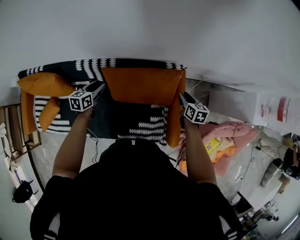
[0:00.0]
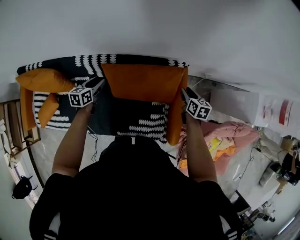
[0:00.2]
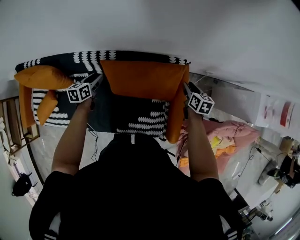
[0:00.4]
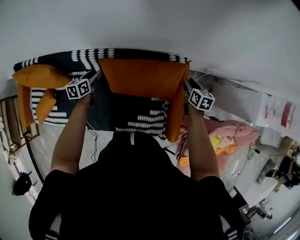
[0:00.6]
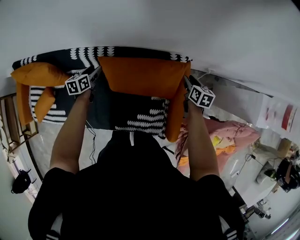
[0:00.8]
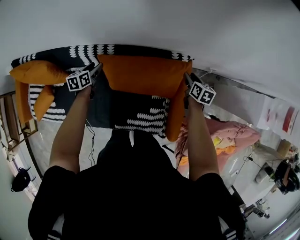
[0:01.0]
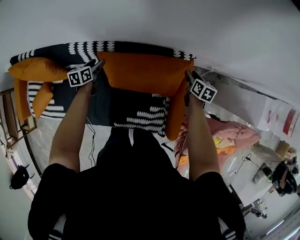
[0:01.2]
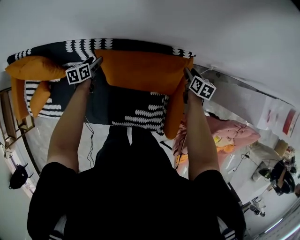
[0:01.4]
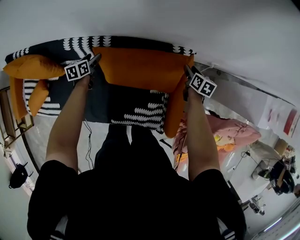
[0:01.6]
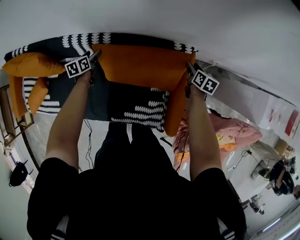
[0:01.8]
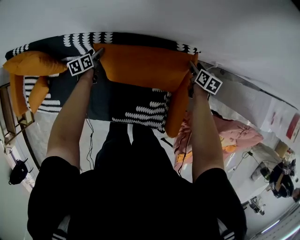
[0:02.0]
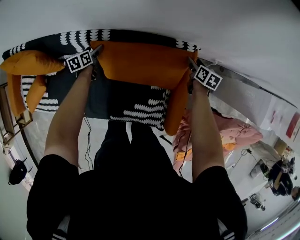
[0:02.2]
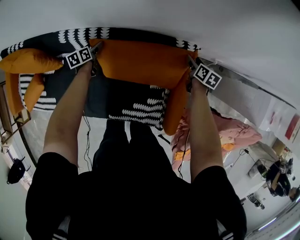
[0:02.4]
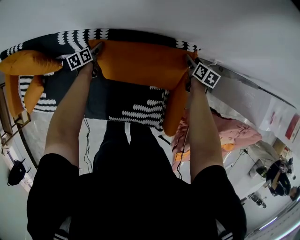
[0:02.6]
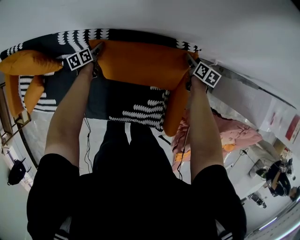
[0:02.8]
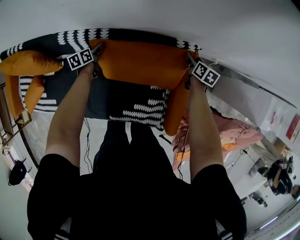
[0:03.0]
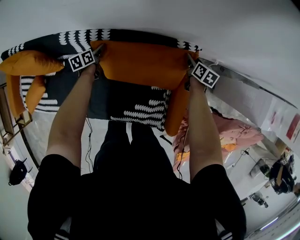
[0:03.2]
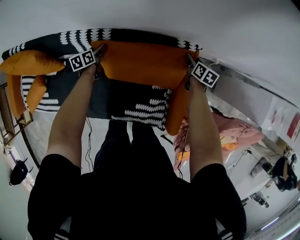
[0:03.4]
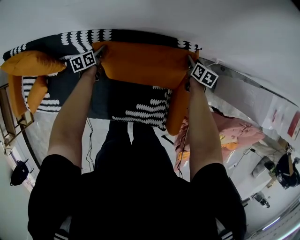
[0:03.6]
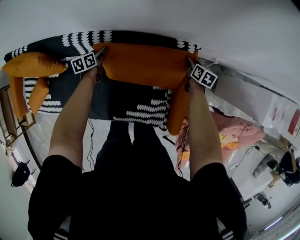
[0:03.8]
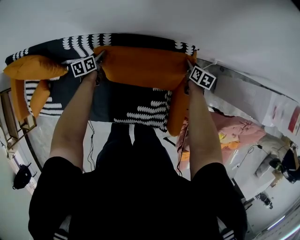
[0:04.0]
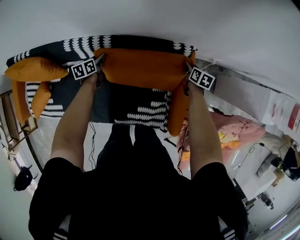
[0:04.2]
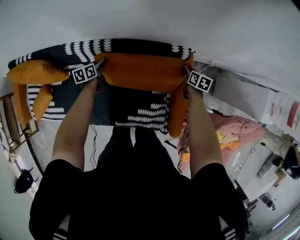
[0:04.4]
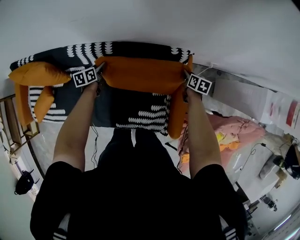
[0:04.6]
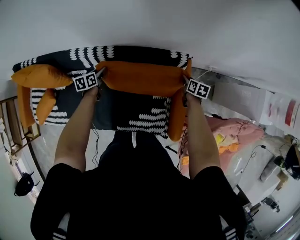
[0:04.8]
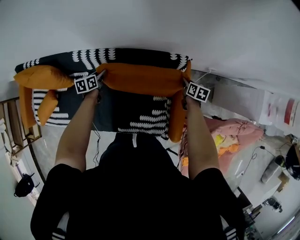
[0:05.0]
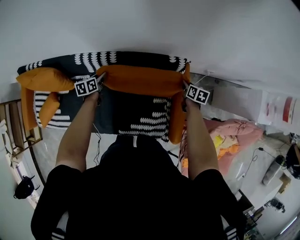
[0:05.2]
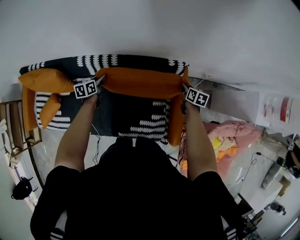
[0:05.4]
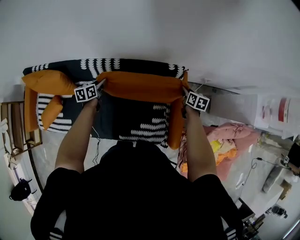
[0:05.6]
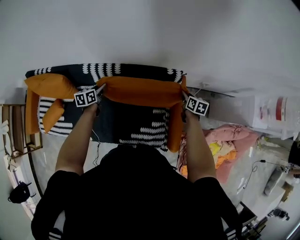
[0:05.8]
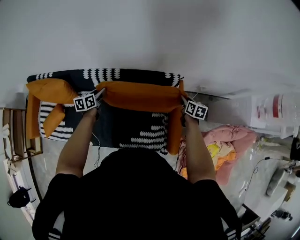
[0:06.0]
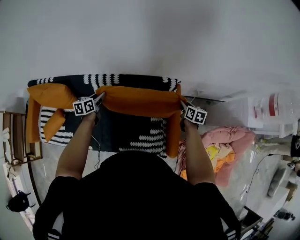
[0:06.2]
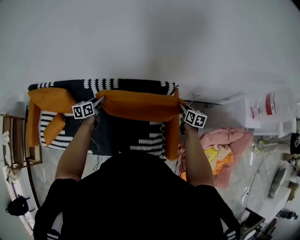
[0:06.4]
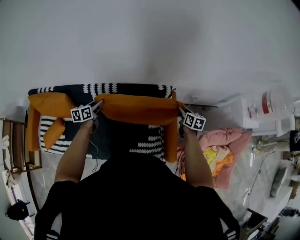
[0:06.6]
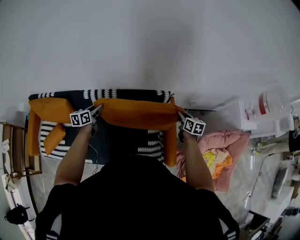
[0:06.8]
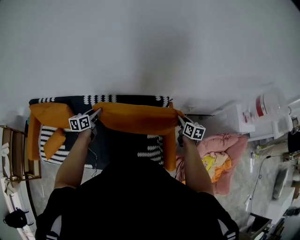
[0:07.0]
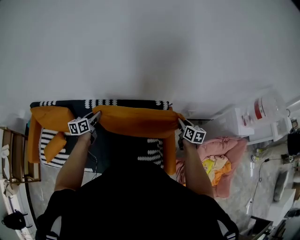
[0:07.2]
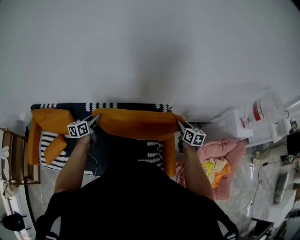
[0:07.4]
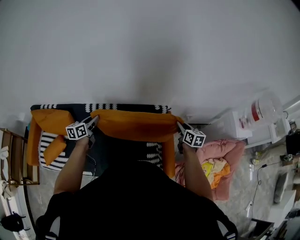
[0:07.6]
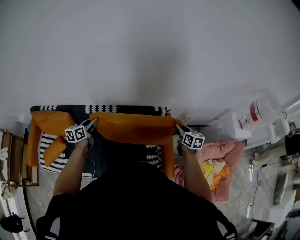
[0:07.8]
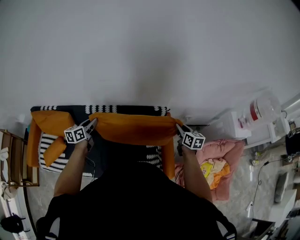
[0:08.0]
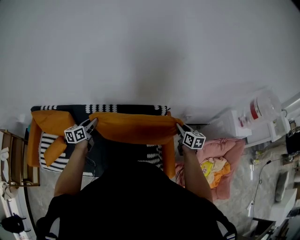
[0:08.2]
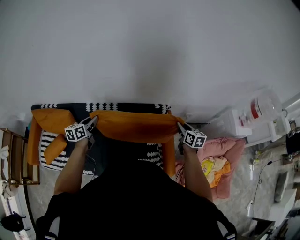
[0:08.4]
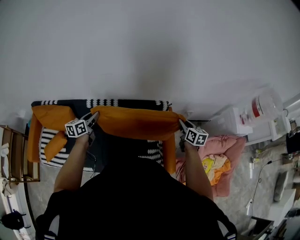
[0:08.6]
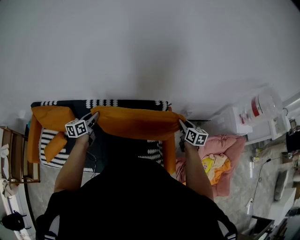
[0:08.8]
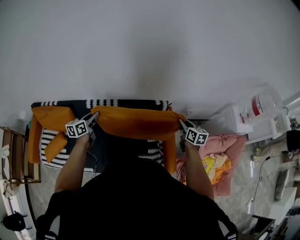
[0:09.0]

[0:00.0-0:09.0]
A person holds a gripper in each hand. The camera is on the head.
0:00.0 to 0:01.6: Both grippers move downward and forward, roughly 15 cm.
0:01.6 to 0:03.0: The right gripper shifts by roughly 5 cm; the left gripper goes approximately 5 cm downward.
0:03.0 to 0:04.4: The left gripper shifts some 5 cm upward, and closes up, while the right gripper shifts about 5 cm backward, and closes its fingers.
0:04.4 to 0:06.0: The two grippers go roughly 20 cm upward and backward.
0:06.0 to 0:07.6: The right gripper heads upward and backward, covering roughly 20 cm, while the left gripper is displaced upward by roughly 15 cm.
0:07.6 to 0:09.0: The grippers stay close to where they were, moving slightly.

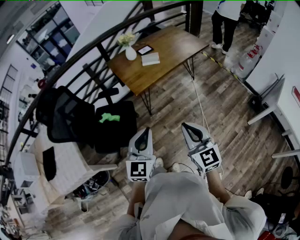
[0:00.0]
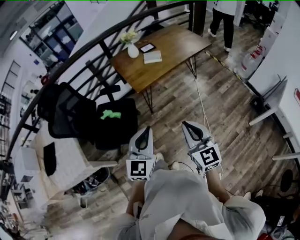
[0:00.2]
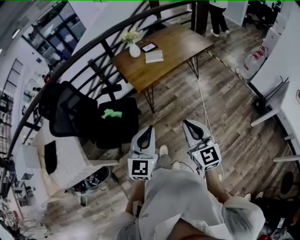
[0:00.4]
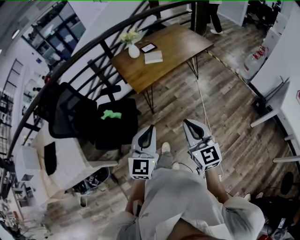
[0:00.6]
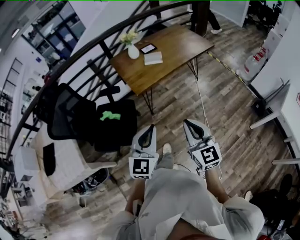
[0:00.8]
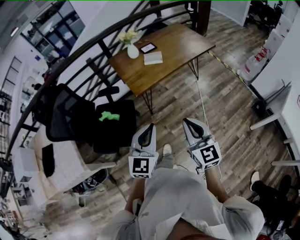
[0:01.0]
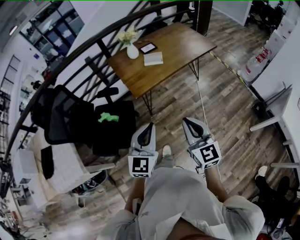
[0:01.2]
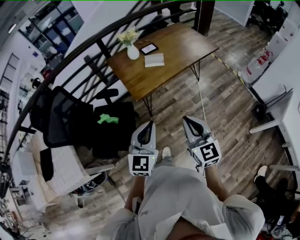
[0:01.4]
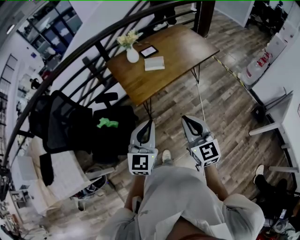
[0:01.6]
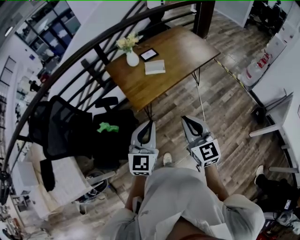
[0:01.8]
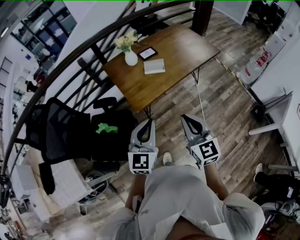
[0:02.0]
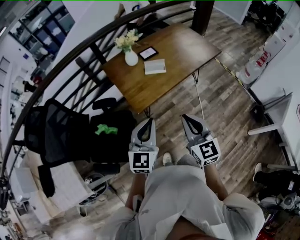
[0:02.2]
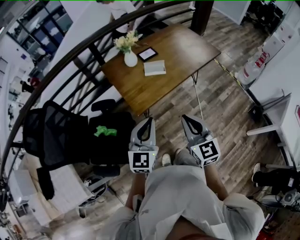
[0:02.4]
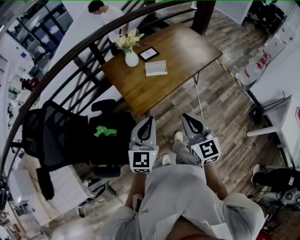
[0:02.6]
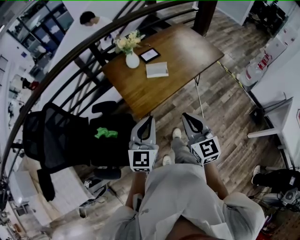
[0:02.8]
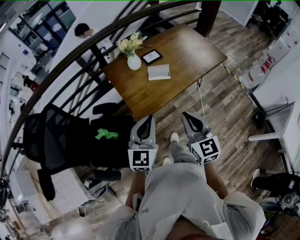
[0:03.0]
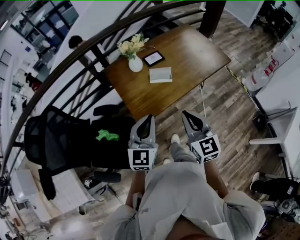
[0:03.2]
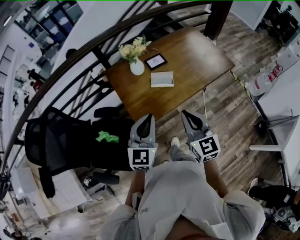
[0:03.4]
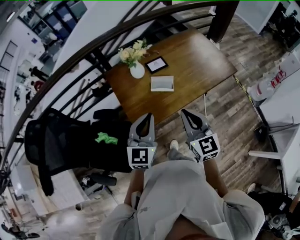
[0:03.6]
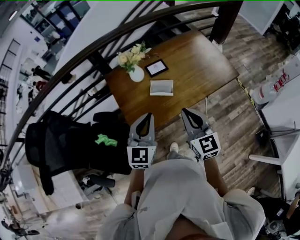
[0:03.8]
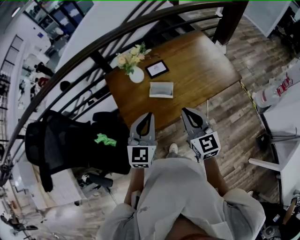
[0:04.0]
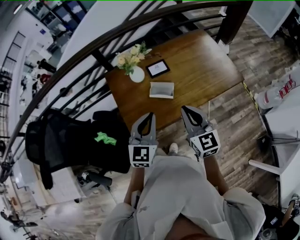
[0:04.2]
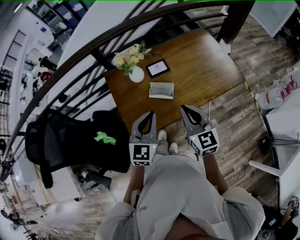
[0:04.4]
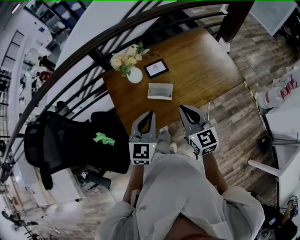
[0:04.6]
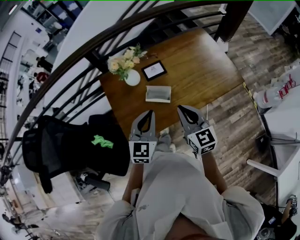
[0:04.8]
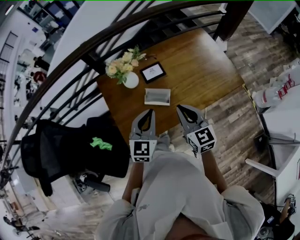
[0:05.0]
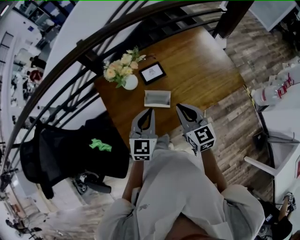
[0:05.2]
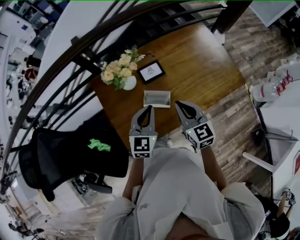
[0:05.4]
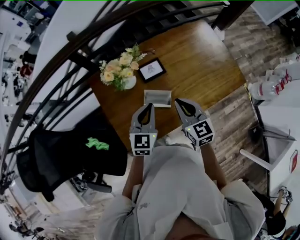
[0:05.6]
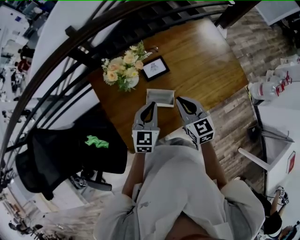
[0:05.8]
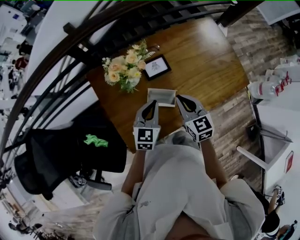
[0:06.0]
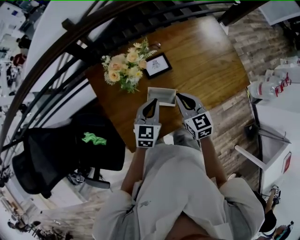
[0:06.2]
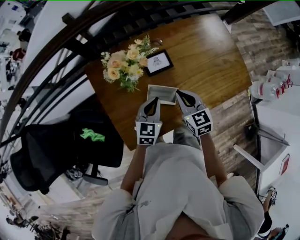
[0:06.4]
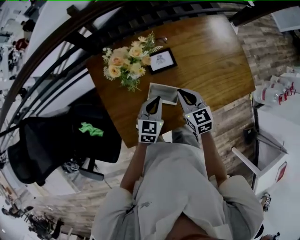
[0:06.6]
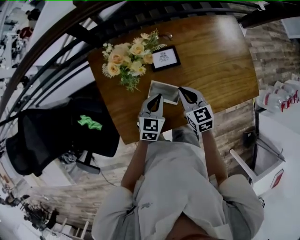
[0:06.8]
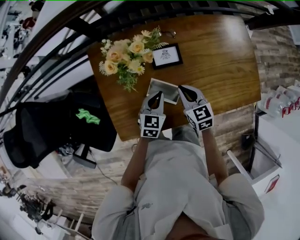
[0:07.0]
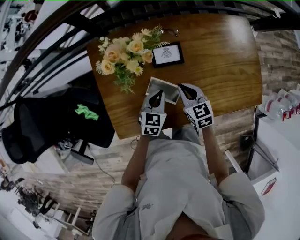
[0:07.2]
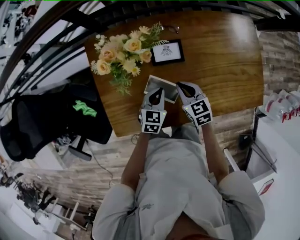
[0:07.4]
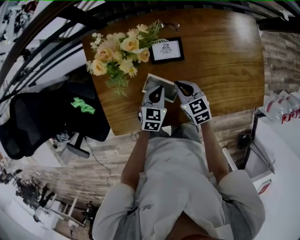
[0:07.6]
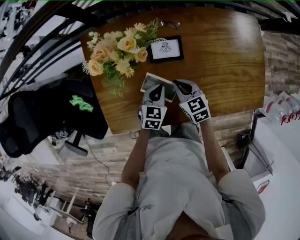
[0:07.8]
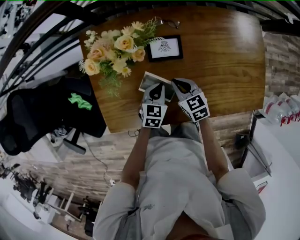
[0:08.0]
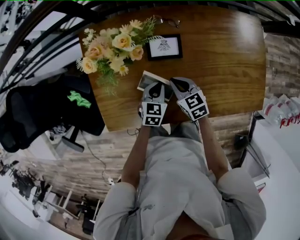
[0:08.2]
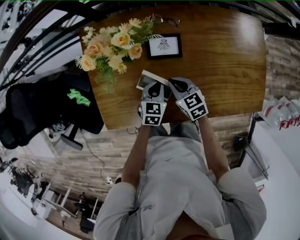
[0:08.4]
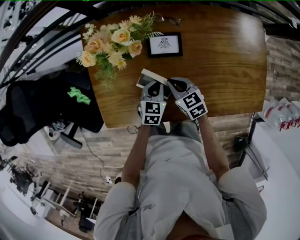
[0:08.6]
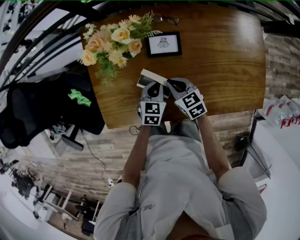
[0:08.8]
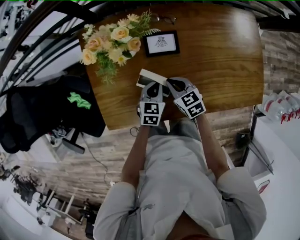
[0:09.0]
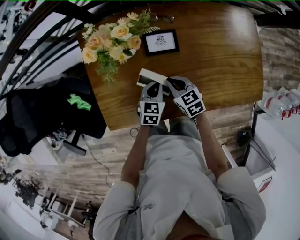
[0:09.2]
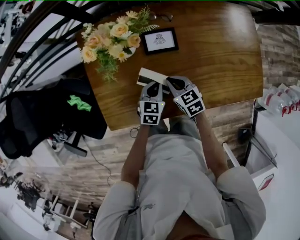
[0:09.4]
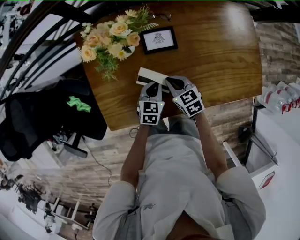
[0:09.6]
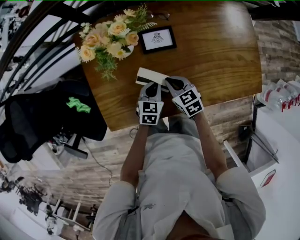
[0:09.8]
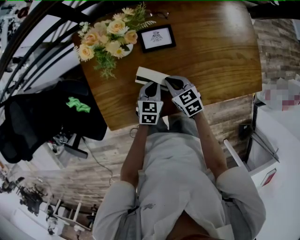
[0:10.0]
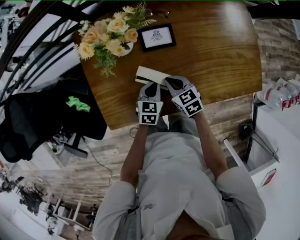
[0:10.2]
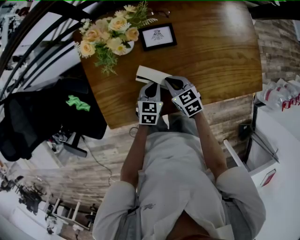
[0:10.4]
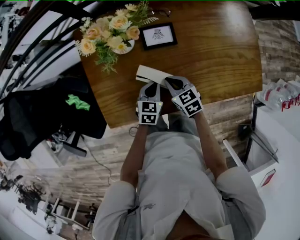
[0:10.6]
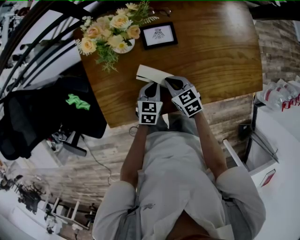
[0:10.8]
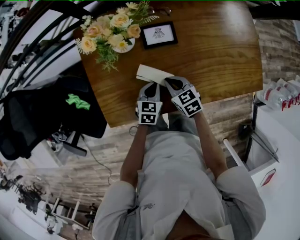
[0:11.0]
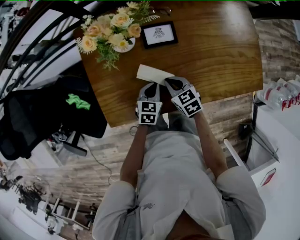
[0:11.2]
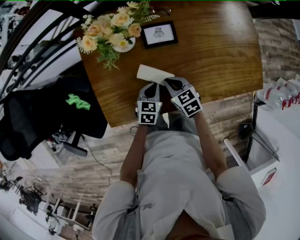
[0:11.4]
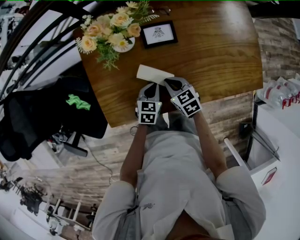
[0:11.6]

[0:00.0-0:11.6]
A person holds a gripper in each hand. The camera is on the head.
0:00.0 to 0:01.4: Both grippers travel together forward, roughly 15 cm.
0:01.4 to 0:02.8: The grippers both shift forward by about 20 cm.
0:02.8 to 0:04.4: The right gripper moves forward, roughly 25 cm; the left gripper travels forward and to the right by approximately 25 cm.
0:04.4 to 0:05.8: The grippers both shift forward and downward by about 20 cm.
0:05.8 to 0:07.2: The right gripper moves downward and forward, about 15 cm, and turns by about 20 degrees, while the left gripper travels downward by some 15 cm.
0:07.2 to 0:08.8: The left gripper ends up some 5 cm from where it was; the right gripper travels downward by approximately 5 cm.
0:08.8 to 0:10.2: There are only small adjustments of the grippers.
0:10.2 to 0:11.6: The grippers make only small movements.

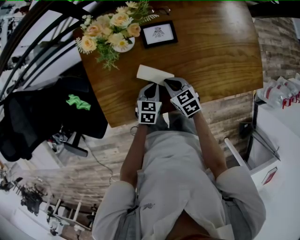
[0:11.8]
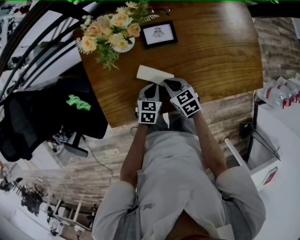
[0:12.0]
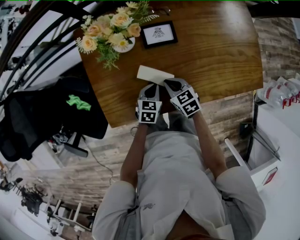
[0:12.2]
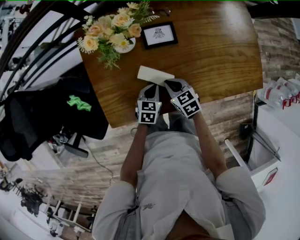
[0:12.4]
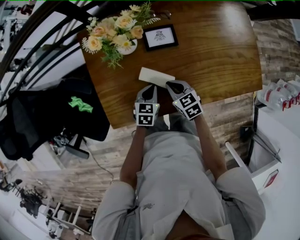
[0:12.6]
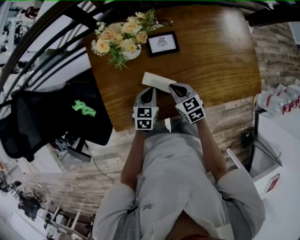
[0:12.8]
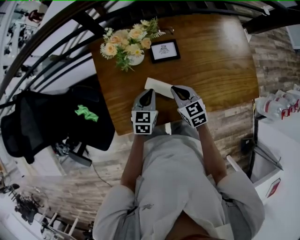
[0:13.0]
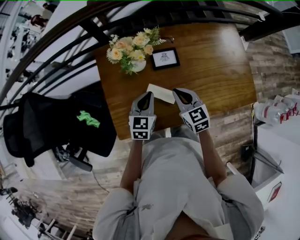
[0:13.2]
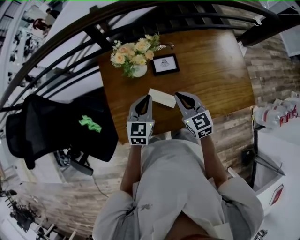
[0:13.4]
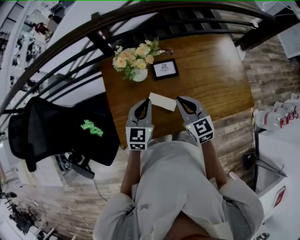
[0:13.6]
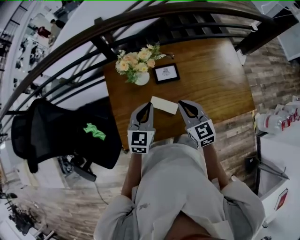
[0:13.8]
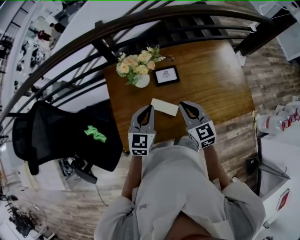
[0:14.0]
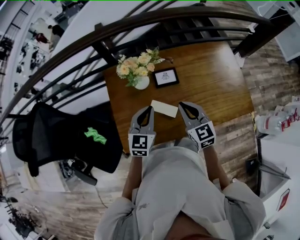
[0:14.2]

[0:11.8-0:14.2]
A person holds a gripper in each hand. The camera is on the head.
0:11.8 to 0:13.0: Both grippers move upward, approximately 10 cm.
0:13.0 to 0:14.2: Both grippers travel together upward, about 15 cm. The right gripper changes its angle by some 20 degrees, while the left gripper rotates approximately 20 degrees.

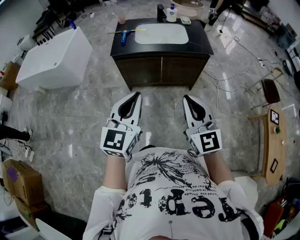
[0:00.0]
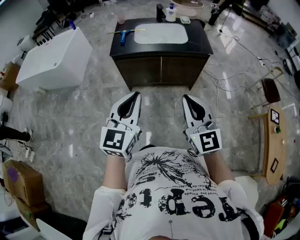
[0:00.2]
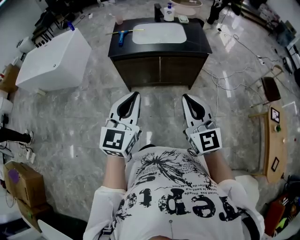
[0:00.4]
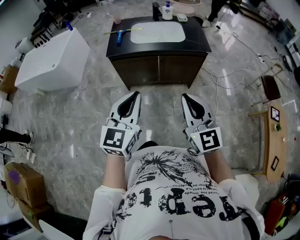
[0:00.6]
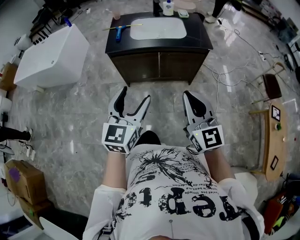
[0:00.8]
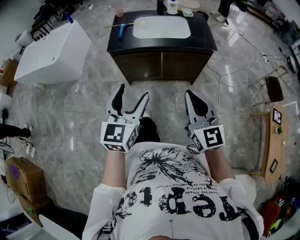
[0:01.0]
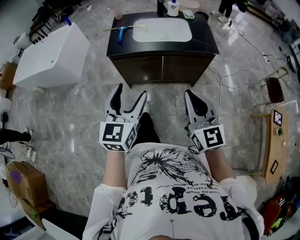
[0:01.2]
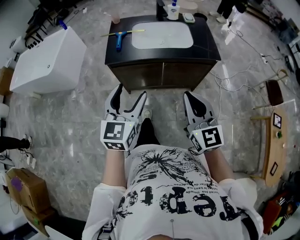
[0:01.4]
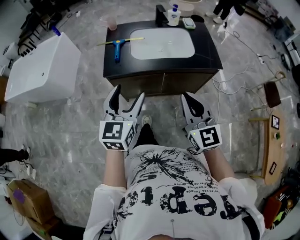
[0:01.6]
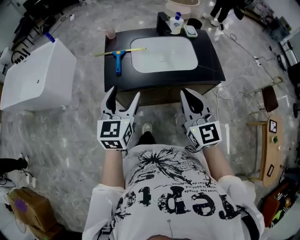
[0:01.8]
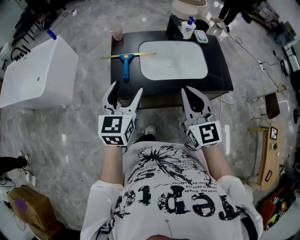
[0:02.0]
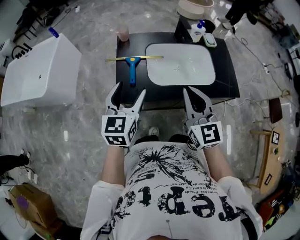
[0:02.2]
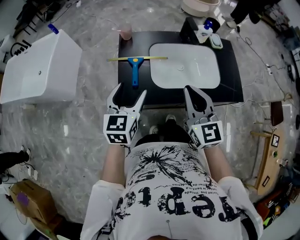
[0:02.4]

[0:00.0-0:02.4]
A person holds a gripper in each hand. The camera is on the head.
0:00.0 to 0:01.2: The two grippers go about 15 cm forward. The left gripper opens up.
0:01.2 to 0:02.4: Both grippers are carried forward, about 50 cm.
